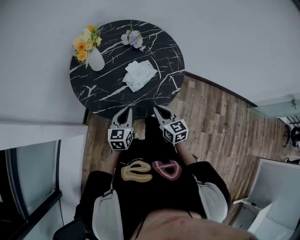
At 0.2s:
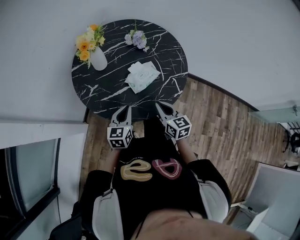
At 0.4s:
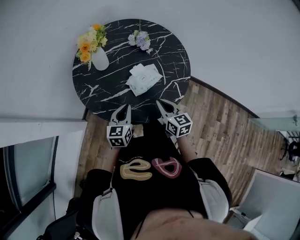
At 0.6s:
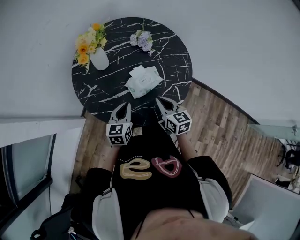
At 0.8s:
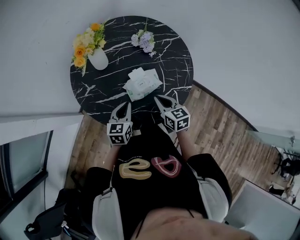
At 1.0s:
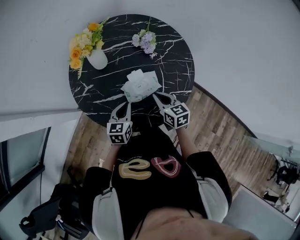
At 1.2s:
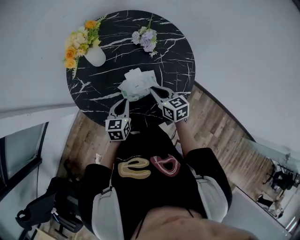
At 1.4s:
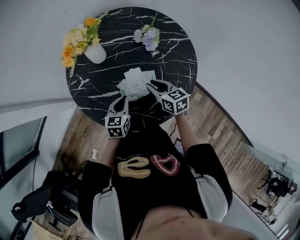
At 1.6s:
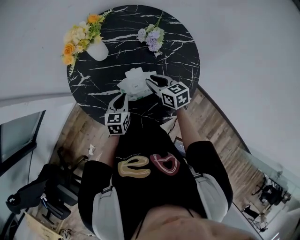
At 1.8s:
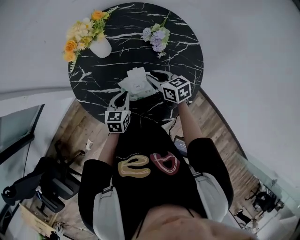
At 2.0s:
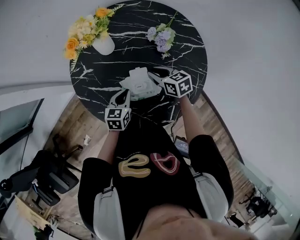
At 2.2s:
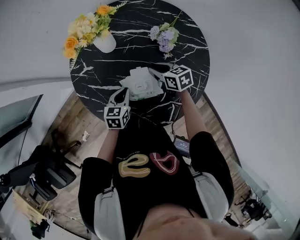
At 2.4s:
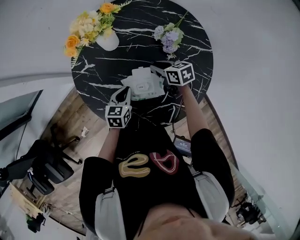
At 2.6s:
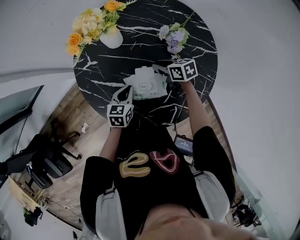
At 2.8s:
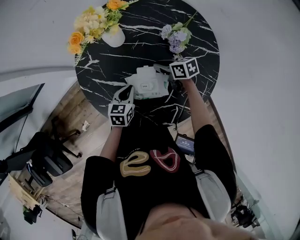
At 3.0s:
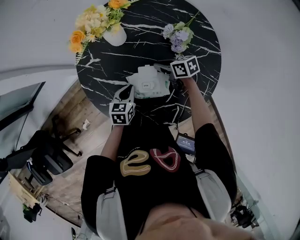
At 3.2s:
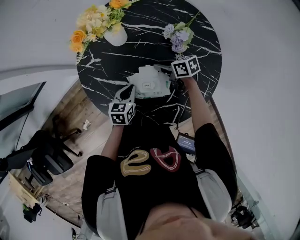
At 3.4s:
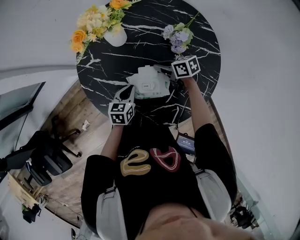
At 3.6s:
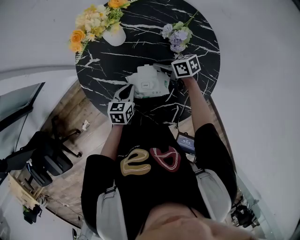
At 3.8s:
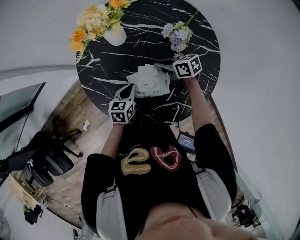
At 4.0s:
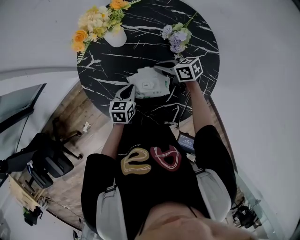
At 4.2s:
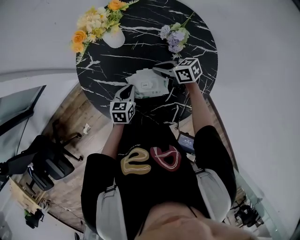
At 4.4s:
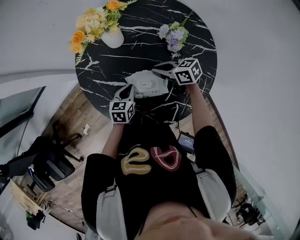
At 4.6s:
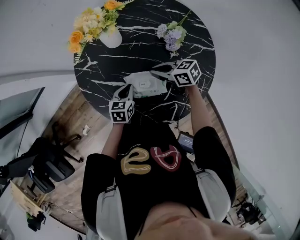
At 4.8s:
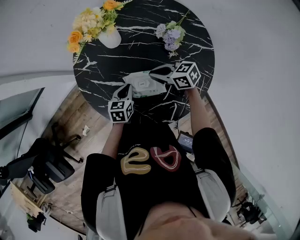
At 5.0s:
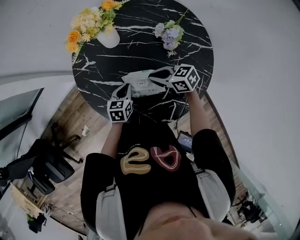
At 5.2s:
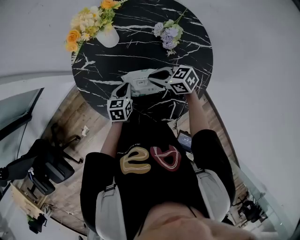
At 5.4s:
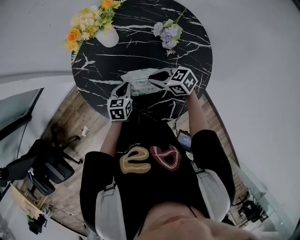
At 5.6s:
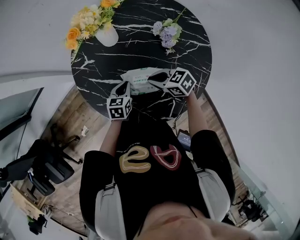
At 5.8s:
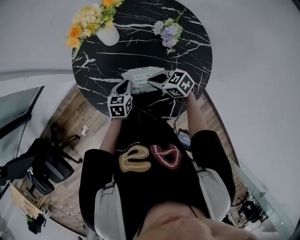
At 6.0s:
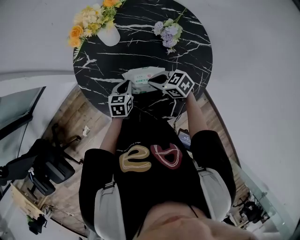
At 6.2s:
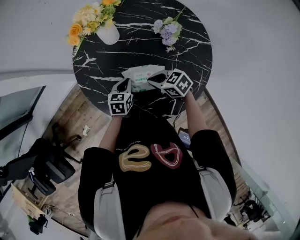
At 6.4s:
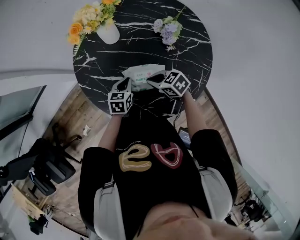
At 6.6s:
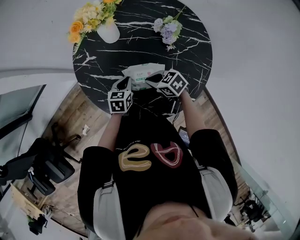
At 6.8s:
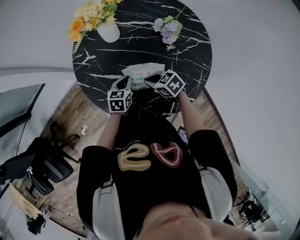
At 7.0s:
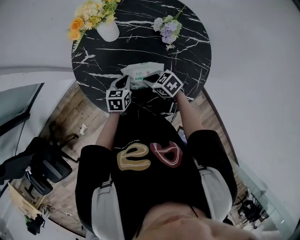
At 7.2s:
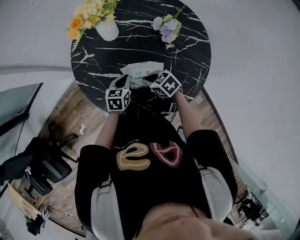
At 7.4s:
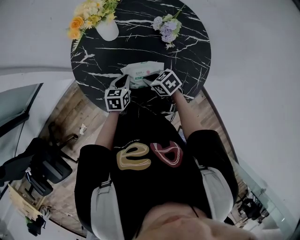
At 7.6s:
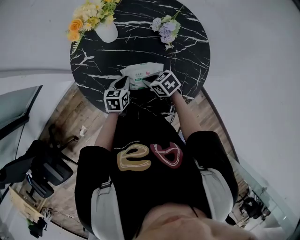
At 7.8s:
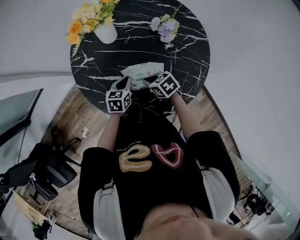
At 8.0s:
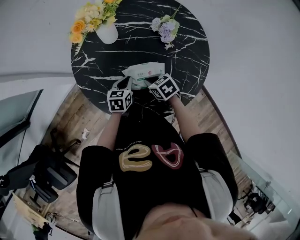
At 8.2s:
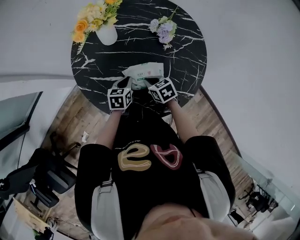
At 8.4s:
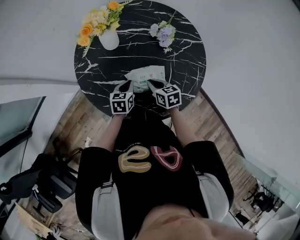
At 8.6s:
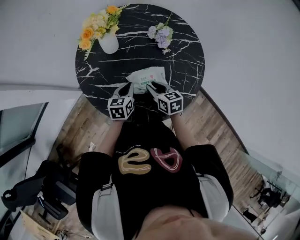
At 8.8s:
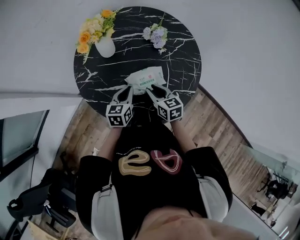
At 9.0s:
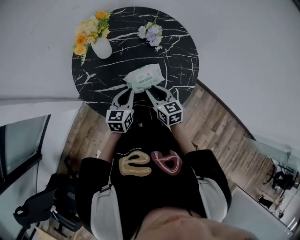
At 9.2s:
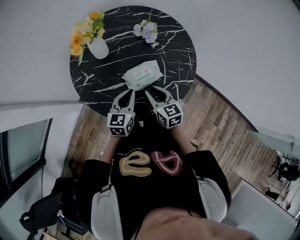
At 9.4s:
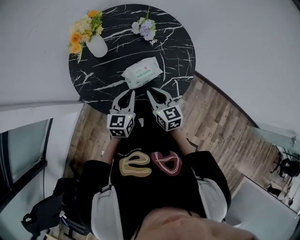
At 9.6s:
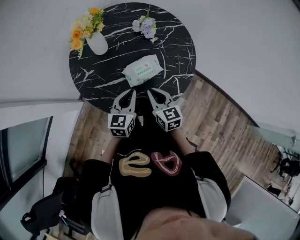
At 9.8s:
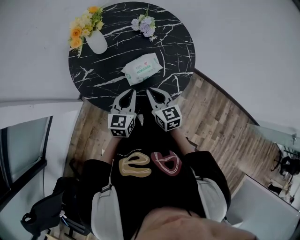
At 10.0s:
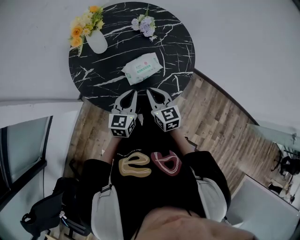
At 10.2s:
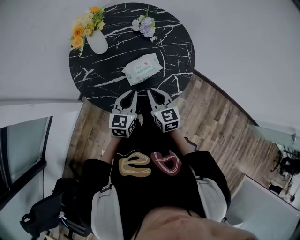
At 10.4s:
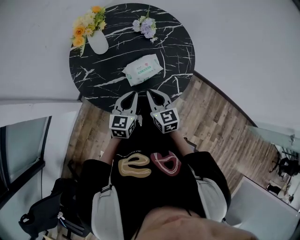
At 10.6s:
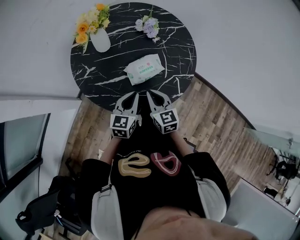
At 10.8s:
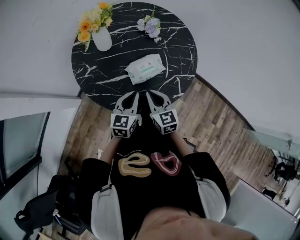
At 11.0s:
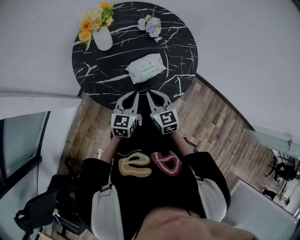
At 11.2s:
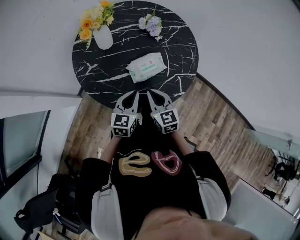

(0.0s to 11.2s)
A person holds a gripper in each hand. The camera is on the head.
0.0s - 1.6s: The left gripper moves some 20 cm, and changes its angle by approximately 30 degrees; the right gripper changes place by some 25 cm, rotates about 40 degrees, and opens.
1.6s - 3.2s: The left gripper moves approximately 5 cm; the right gripper moves forward and downward, approximately 15 cm, and turns by roughly 30 degrees.
3.2s - 4.8s: The right gripper heads upward, covering roughly 5 cm.
4.8s - 6.4s: The right gripper shifts roughly 5 cm backward.
6.4s - 8.0s: The right gripper changes its angle by roughly 20 degrees.
8.0s - 9.6s: Both grippers move upward, about 15 cm. The left gripper changes its angle by approximately 30 degrees. Meanwhile the right gripper tilts its fingers roughly 30 degrees upward, and opens and closes again.
9.6s - 11.2s: There are only small adjustments of the grippers.

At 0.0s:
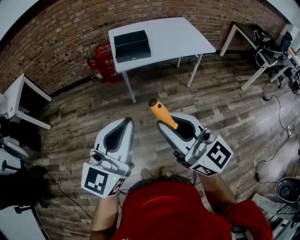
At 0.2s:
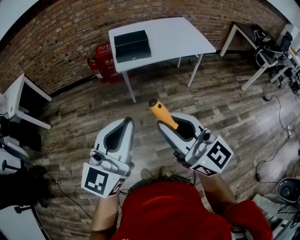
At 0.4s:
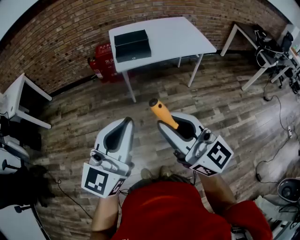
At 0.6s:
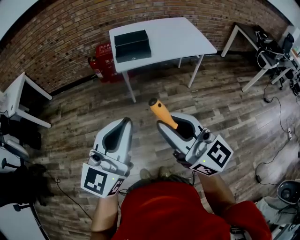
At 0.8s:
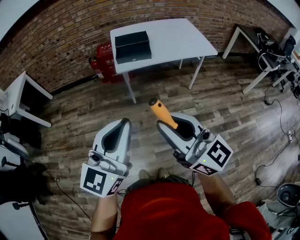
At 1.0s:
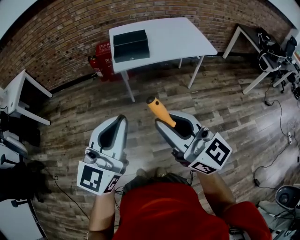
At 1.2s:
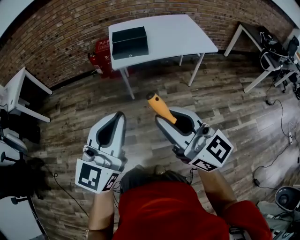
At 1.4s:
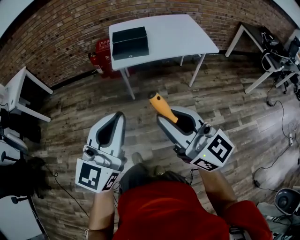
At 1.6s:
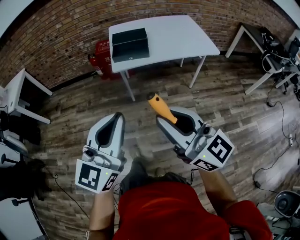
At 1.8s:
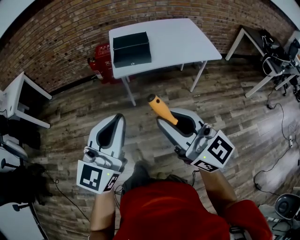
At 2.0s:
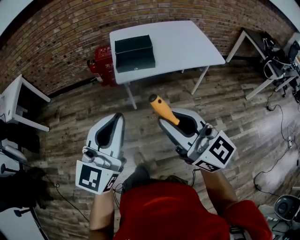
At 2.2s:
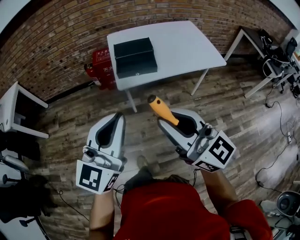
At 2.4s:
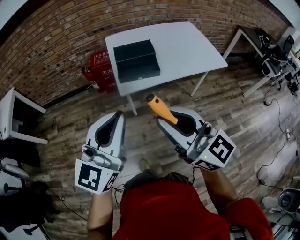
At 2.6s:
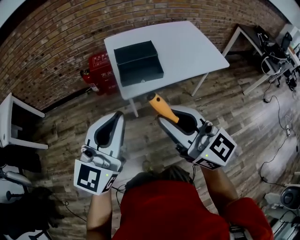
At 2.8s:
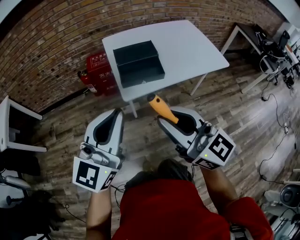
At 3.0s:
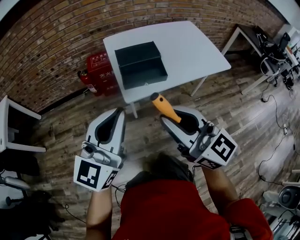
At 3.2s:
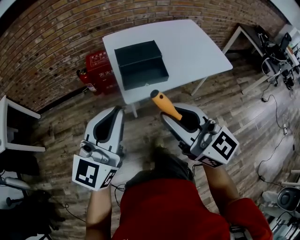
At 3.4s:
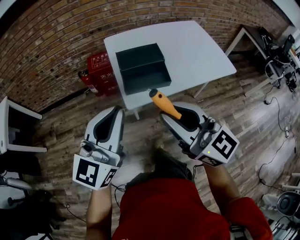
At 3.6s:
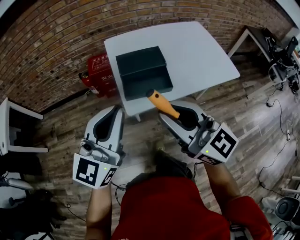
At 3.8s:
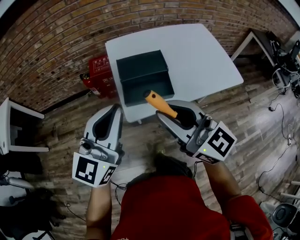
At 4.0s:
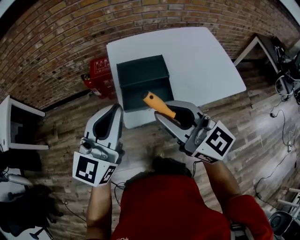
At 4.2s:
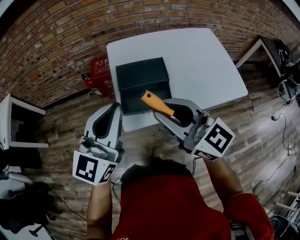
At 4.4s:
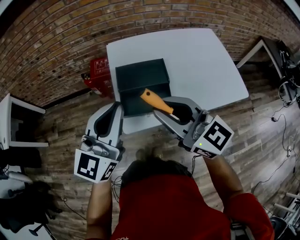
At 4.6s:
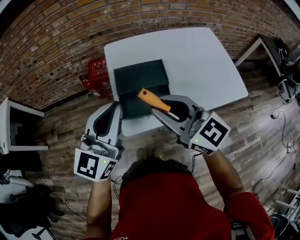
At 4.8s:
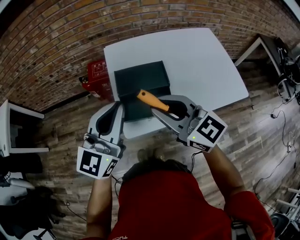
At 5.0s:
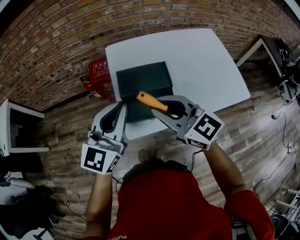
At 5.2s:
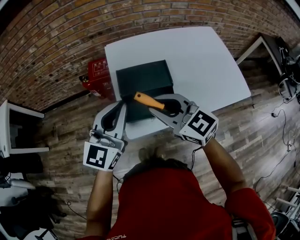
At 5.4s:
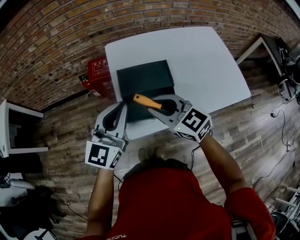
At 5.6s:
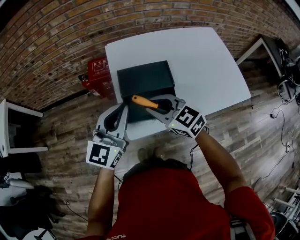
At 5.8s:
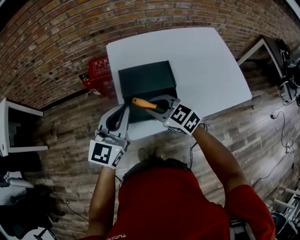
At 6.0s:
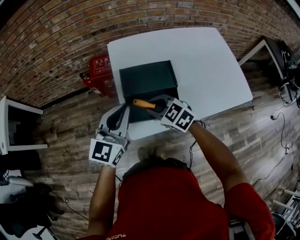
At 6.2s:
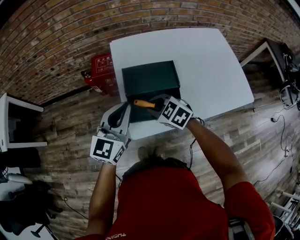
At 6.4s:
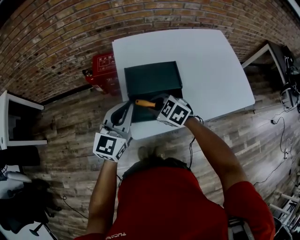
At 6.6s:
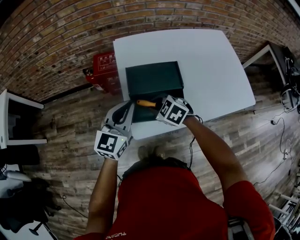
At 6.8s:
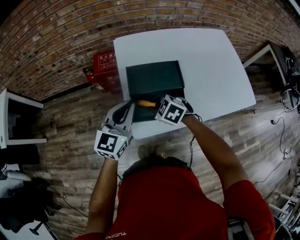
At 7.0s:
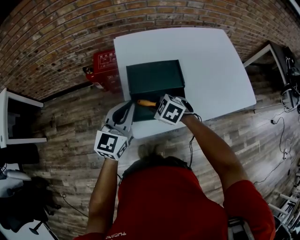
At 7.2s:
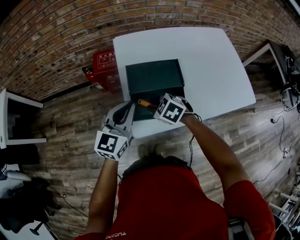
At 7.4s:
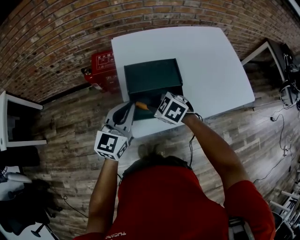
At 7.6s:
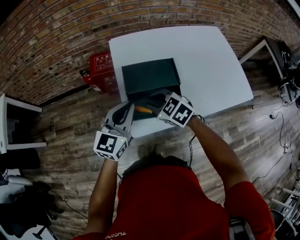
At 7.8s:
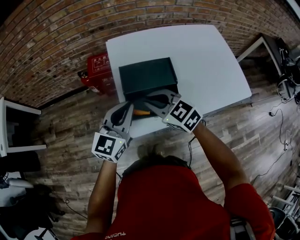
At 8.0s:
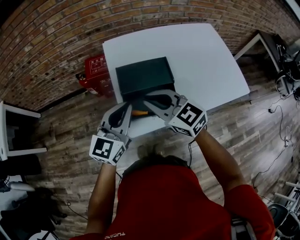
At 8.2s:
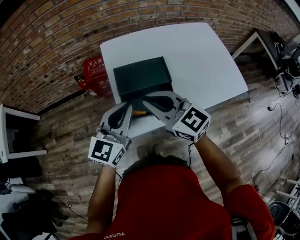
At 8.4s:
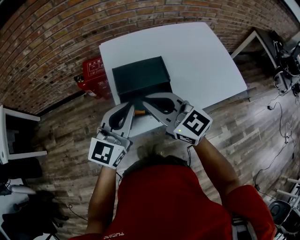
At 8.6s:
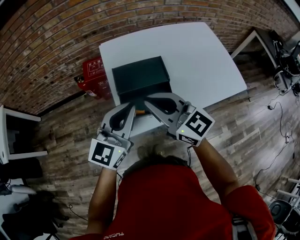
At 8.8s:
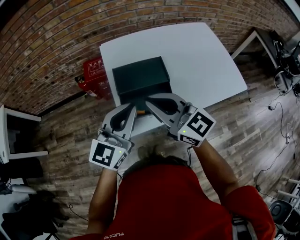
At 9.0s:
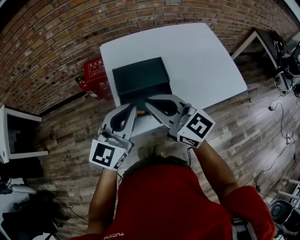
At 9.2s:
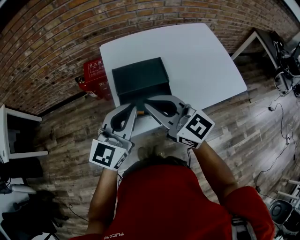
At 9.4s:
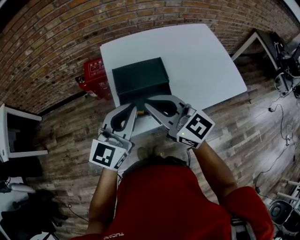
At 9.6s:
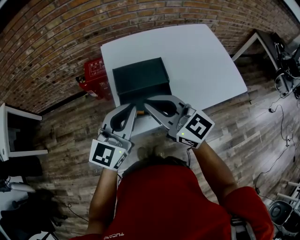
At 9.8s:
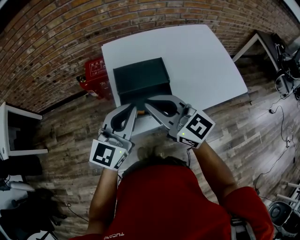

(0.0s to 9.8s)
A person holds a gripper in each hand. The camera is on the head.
0.0s - 1.4s: The left gripper moves some 5 cm. The right gripper is displaced to the right by approximately 5 cm.
1.4s - 2.8s: The left gripper heads forward, covering some 30 cm. Meanwhile the right gripper shifts approximately 30 cm forward and to the left.
2.8s - 4.2s: Both grippers travel together forward, about 20 cm.
4.2s - 5.6s: The grippers both shift downward and forward by some 15 cm. The right gripper rotates some 30 degrees.
5.6s - 7.0s: The right gripper is displaced downward by about 15 cm, and points its fingers roughly 30 degrees further downward. Meanwhile the left gripper travels downward by approximately 5 cm.
7.0s - 8.4s: The left gripper is displaced upward and backward by about 10 cm; the right gripper heads upward, covering about 20 cm, and angles its fingers upward, by some 50 degrees.
8.4s - 9.8s: The grippers move only a little.

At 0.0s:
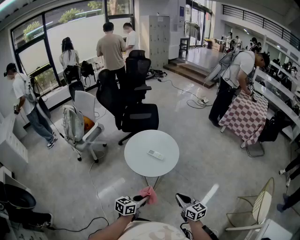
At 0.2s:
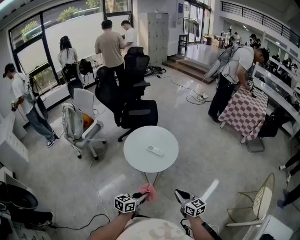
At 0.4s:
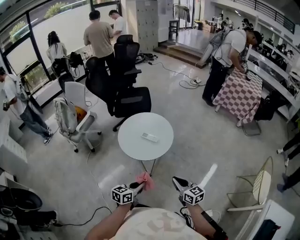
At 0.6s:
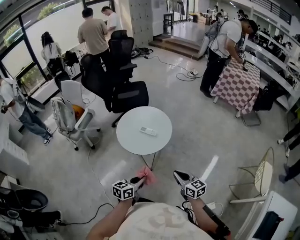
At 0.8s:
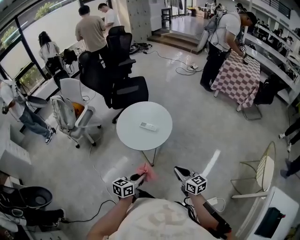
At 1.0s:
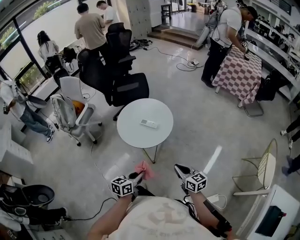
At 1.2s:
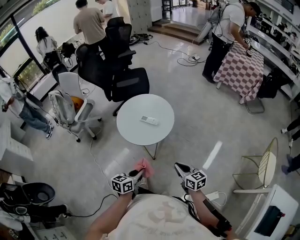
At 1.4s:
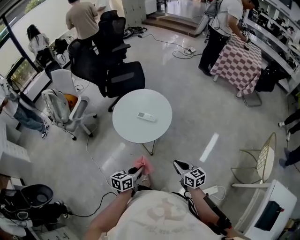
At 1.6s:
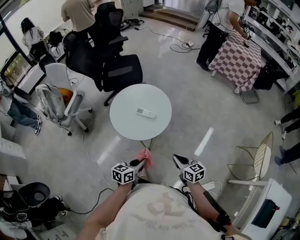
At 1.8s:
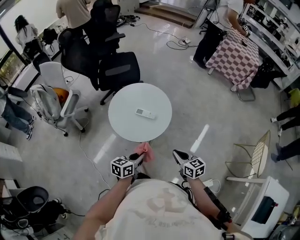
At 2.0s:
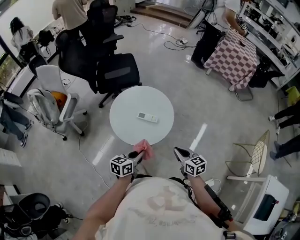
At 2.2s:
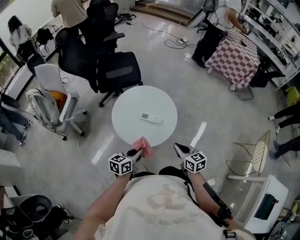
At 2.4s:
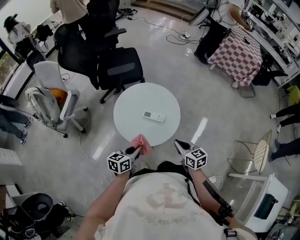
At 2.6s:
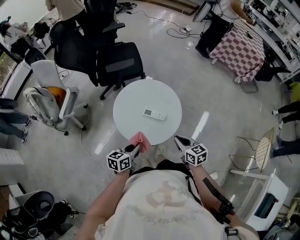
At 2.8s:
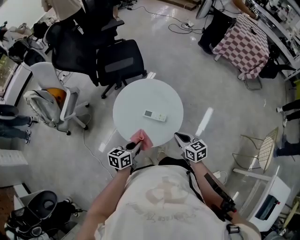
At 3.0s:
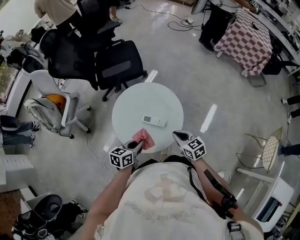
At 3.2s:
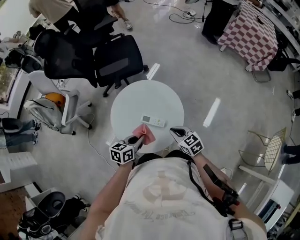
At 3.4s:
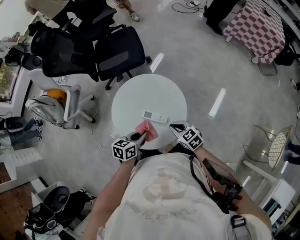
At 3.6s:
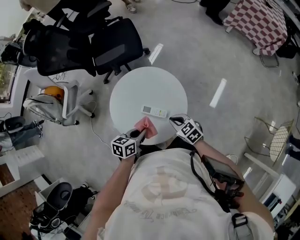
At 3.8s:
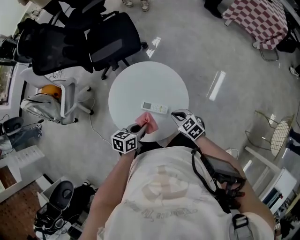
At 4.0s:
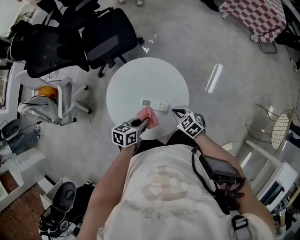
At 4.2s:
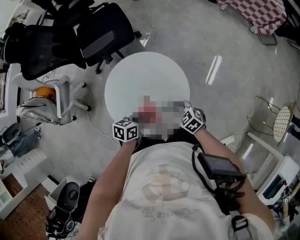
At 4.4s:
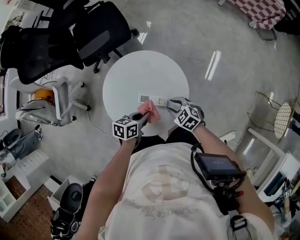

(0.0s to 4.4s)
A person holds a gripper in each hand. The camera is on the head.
0.0s - 1.4s: The right gripper shifts some 5 cm downward.
1.4s - 3.0s: Both grippers move forward, about 25 cm.
3.0s - 4.4s: Both grippers move downward, roughly 10 cm. The right gripper rotates about 30 degrees, and opens. Meanwhile the left gripper rotates some 20 degrees.
